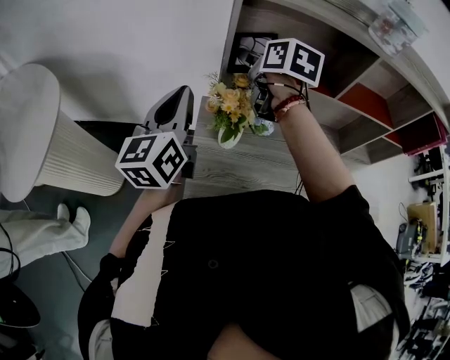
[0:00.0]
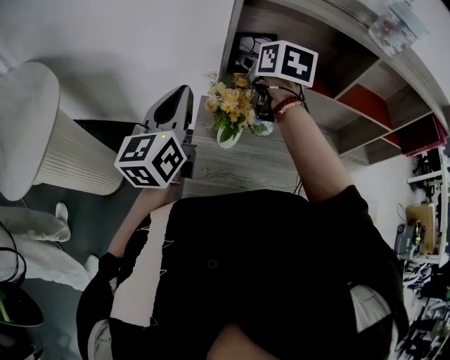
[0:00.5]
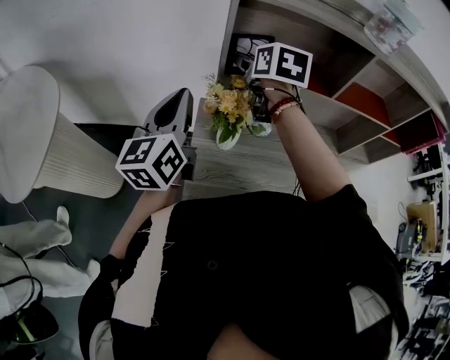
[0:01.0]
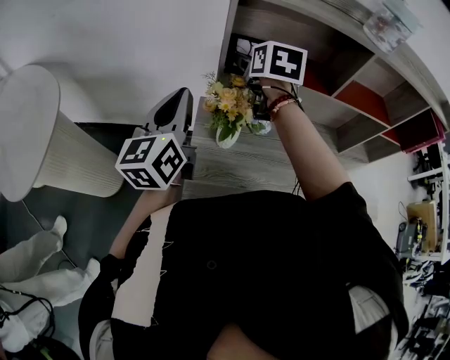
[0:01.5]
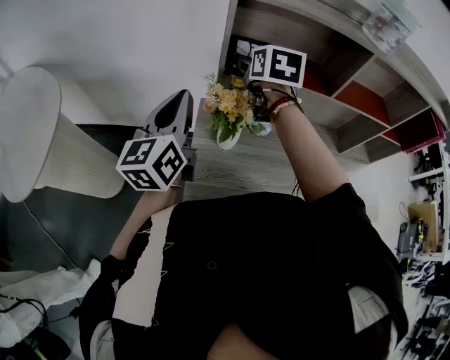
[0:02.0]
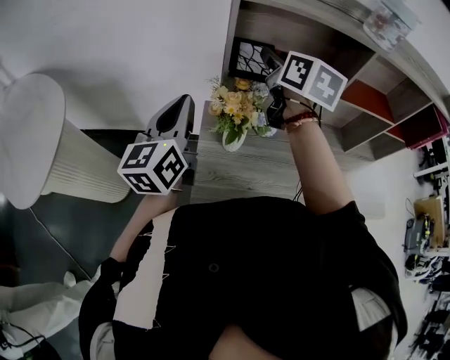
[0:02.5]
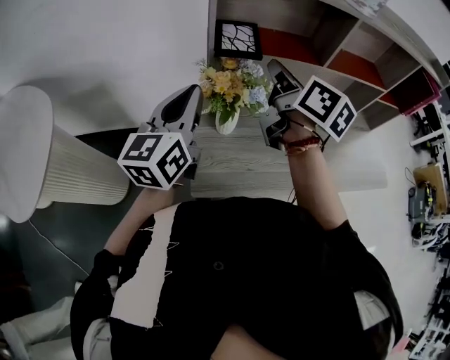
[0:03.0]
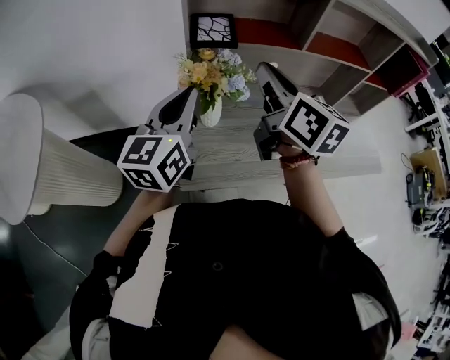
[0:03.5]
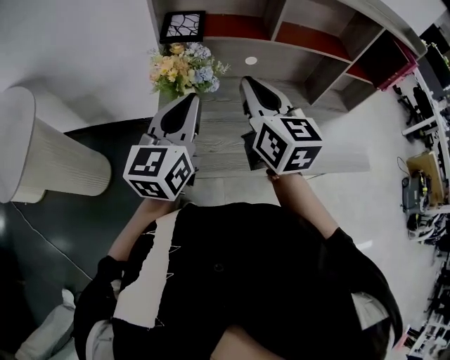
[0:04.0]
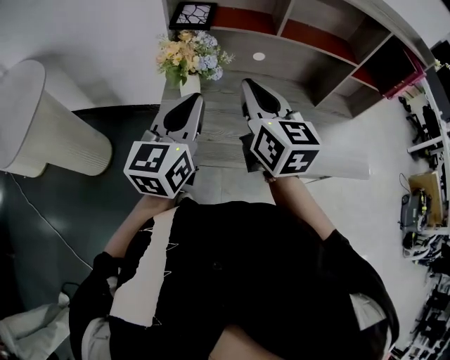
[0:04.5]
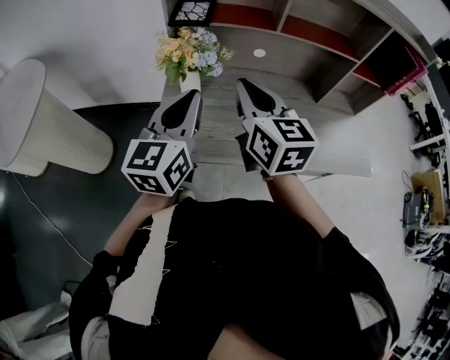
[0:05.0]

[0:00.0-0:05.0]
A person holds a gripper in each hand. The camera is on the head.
0:00.0 to 0:02.5: The right gripper shifts approximately 5 cm upward.
0:02.5 to 0:05.0: The right gripper shifts about 25 cm backward, and closes up, while the left gripper heads to the right and backward, covering roughly 25 cm.

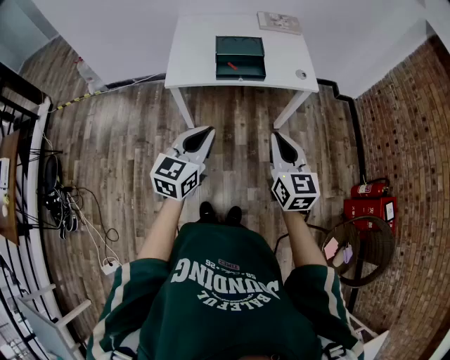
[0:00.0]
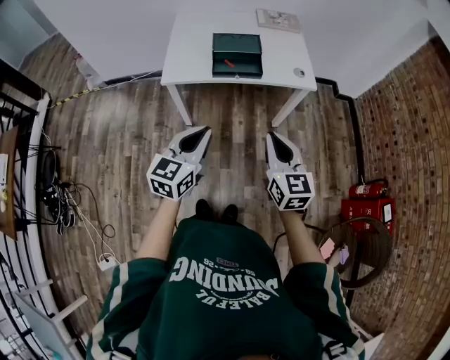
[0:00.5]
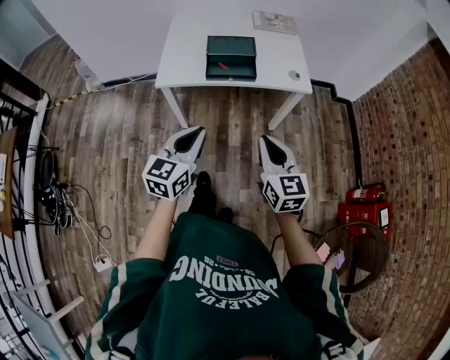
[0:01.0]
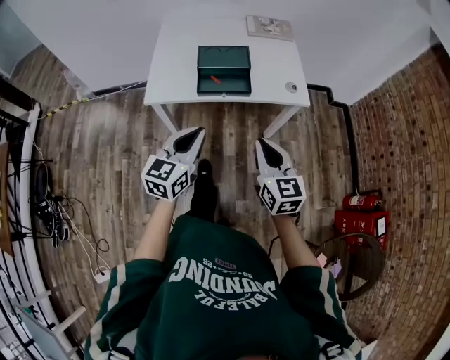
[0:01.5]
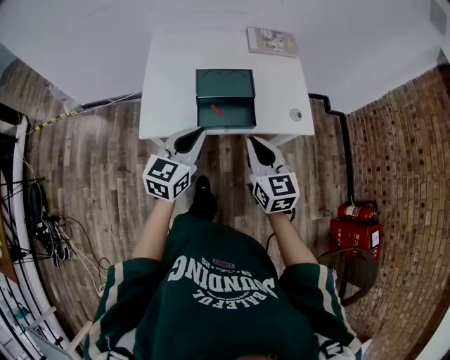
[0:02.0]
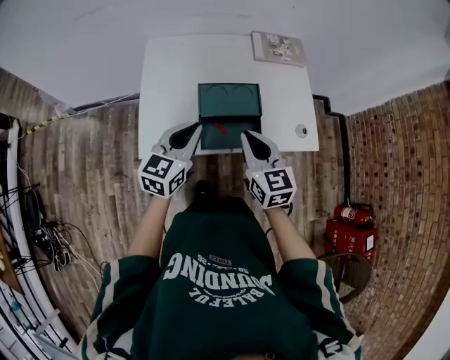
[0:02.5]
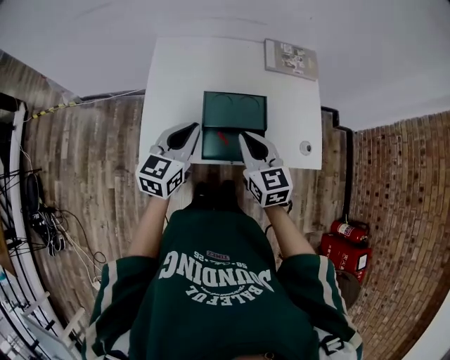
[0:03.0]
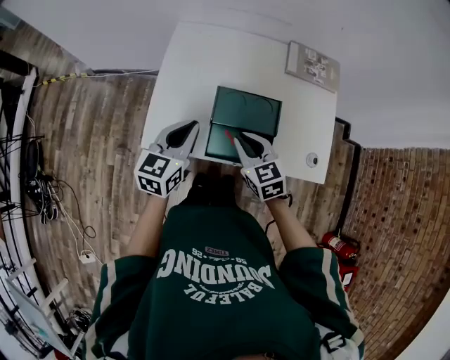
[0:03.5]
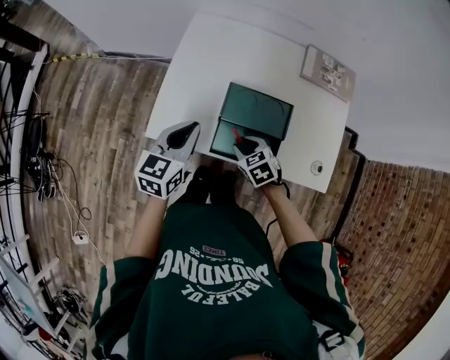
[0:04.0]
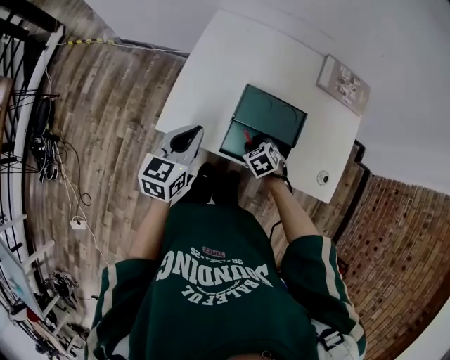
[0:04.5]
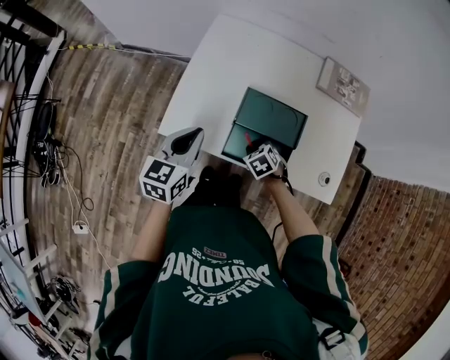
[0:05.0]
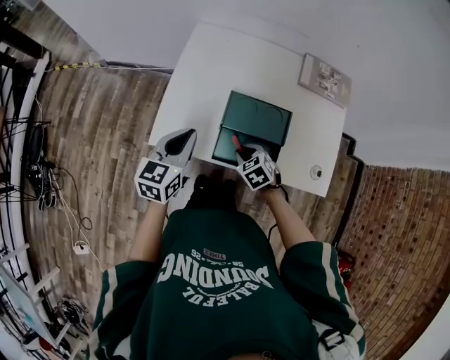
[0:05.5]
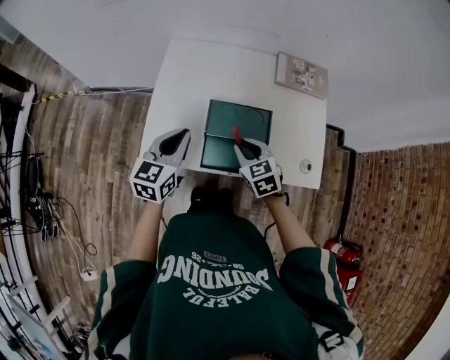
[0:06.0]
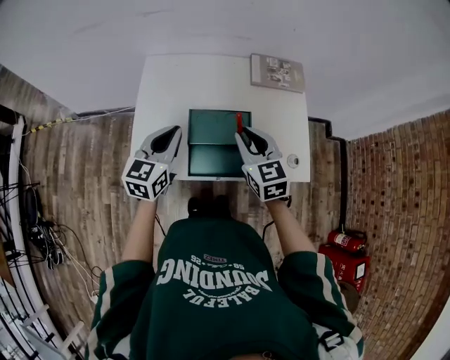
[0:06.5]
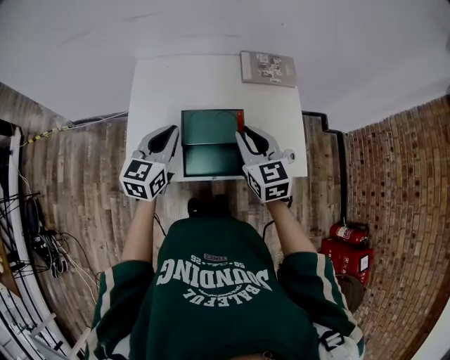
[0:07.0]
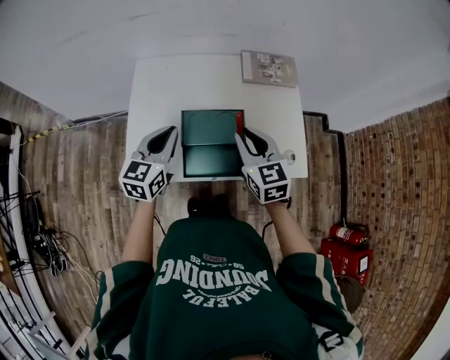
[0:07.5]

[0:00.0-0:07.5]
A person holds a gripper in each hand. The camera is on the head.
0:00.0 to 0:02.0: Both grippers travel together forward, about 25 cm.
0:02.0 to 0:04.0: The right gripper travels downward by approximately 20 cm, points its fingers some 40 degrees further downward, and opens its fingers, while the left gripper moves roughly 15 cm, and turns by roughly 20 degrees.
0:04.0 to 0:05.5: The right gripper goes downward and returns, some 10 cm each way.
0:05.5 to 0:07.5: The right gripper travels upward and to the right by some 25 cm, and points its fingers some 40 degrees further upward, while the left gripper is displaced to the right and forward by approximately 10 cm.

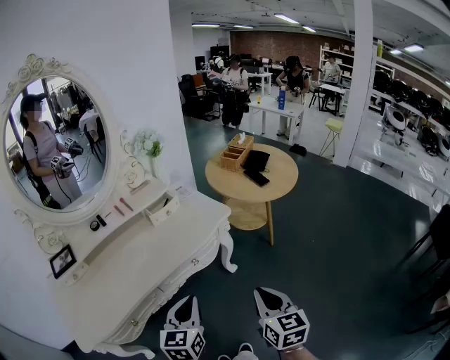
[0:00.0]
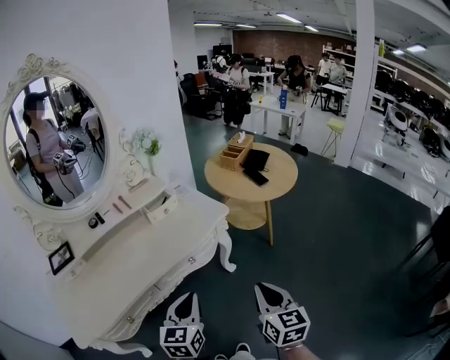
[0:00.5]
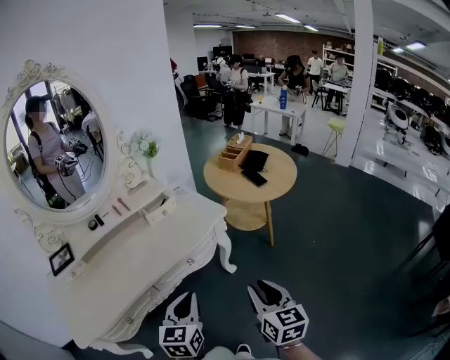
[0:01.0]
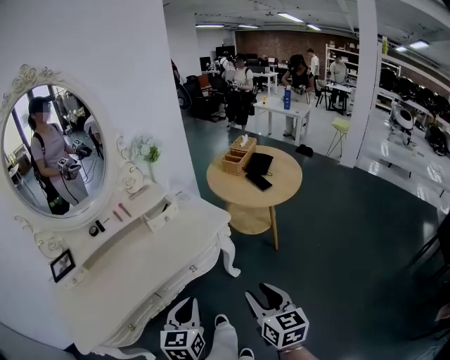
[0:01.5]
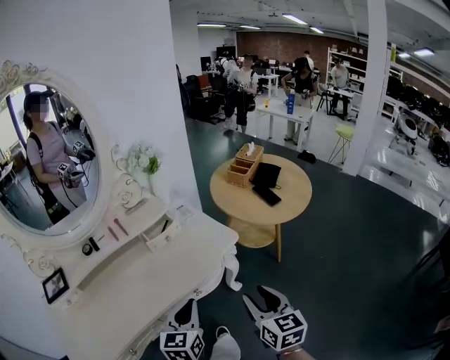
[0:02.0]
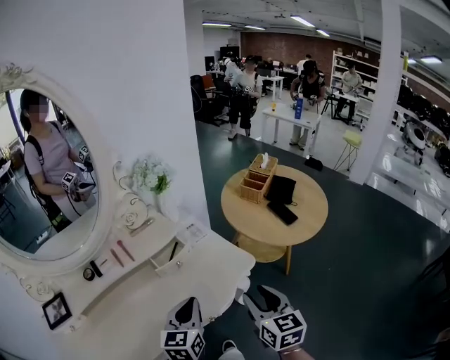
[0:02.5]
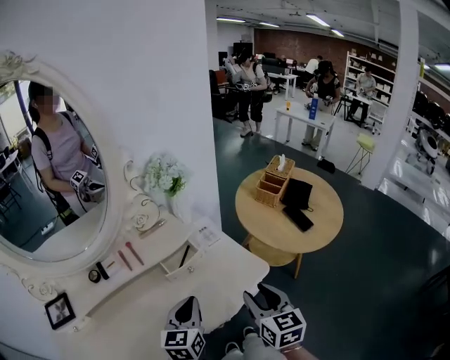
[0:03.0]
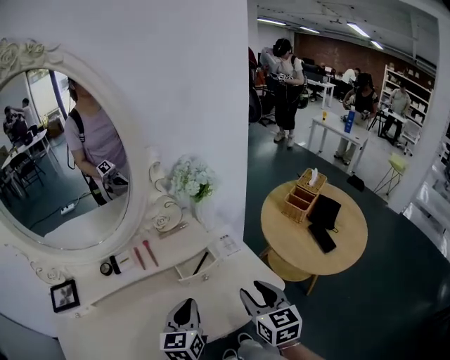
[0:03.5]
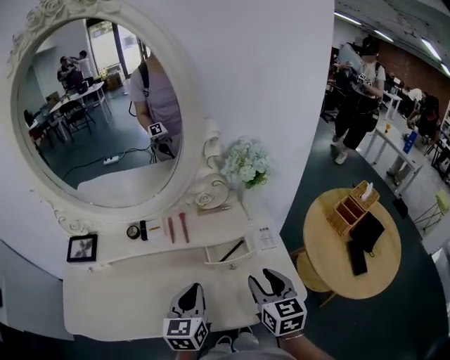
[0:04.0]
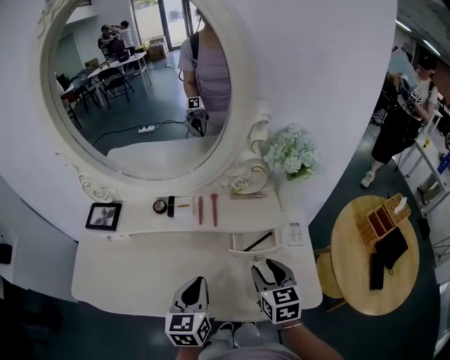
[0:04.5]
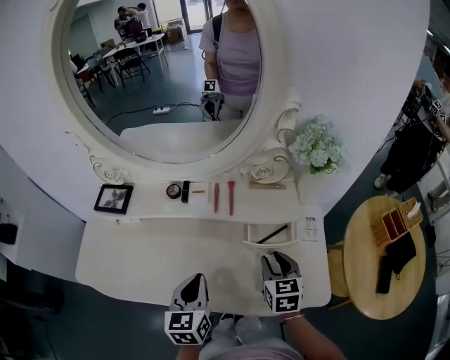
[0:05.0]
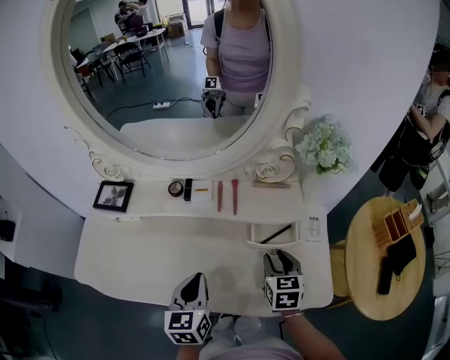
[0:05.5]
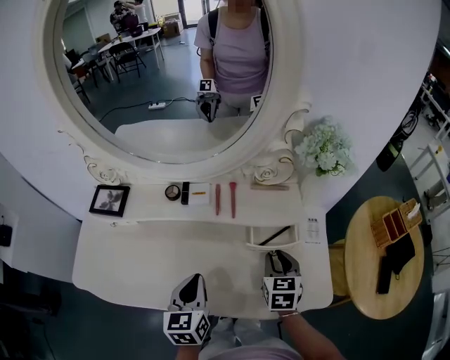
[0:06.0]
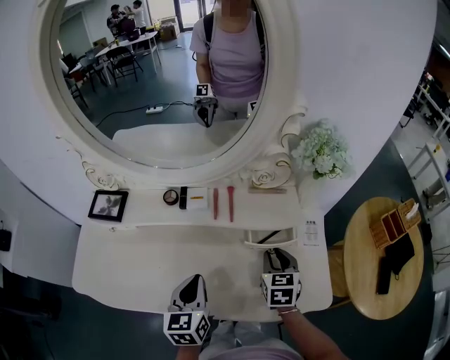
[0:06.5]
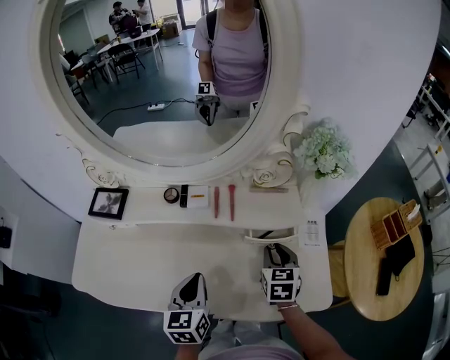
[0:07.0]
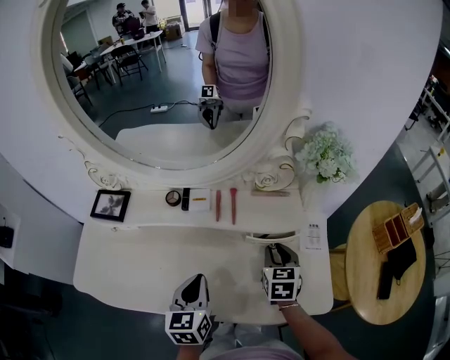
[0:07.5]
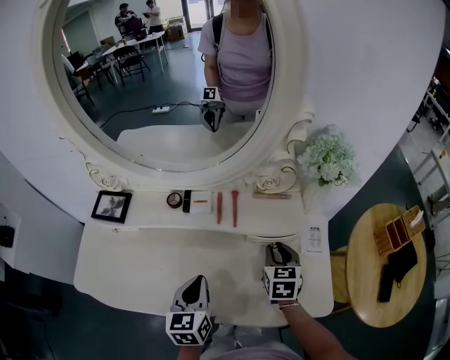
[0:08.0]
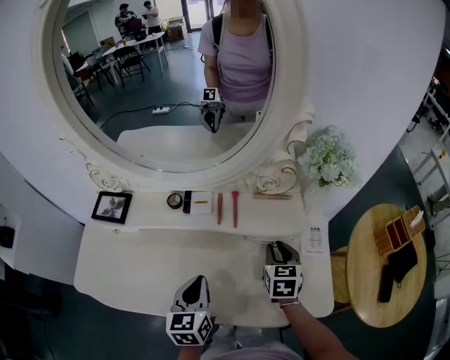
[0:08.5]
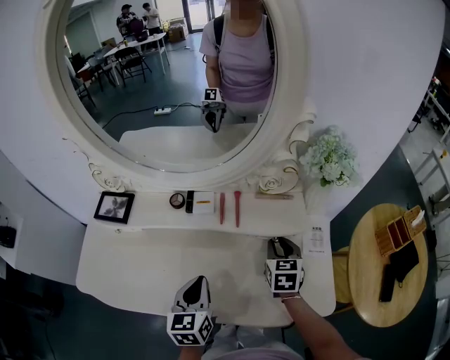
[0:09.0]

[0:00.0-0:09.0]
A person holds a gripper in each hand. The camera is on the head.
0:00.0 to 0:02.0: Both grippers travel together forward, about 15 cm. The right gripper opens its fingers.
0:02.0 to 0:04.5: The left gripper moves about 25 cm, and rotates some 50 degrees. The right gripper ends up approximately 40 cm from where it was, and turns by some 50 degrees.
0:04.5 to 0:07.0: The left gripper moves about 5 cm. The right gripper travels forward and downward by some 10 cm.
0:07.0 to 0:09.0: The grippers make only small movements.

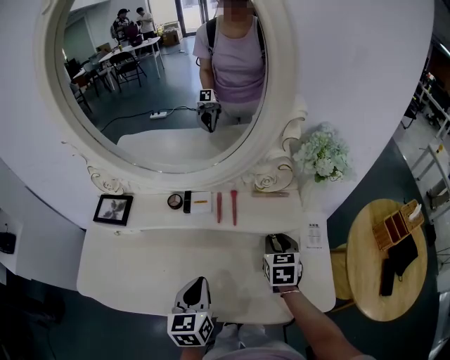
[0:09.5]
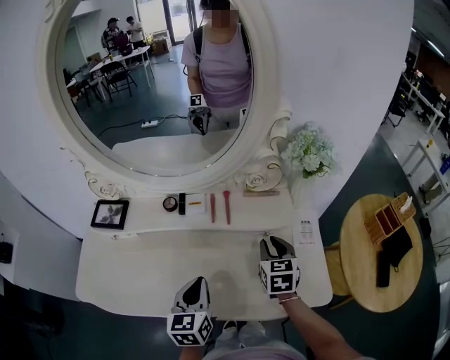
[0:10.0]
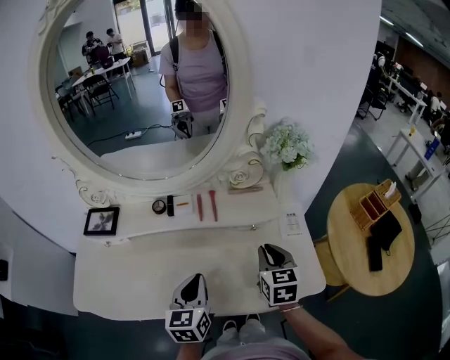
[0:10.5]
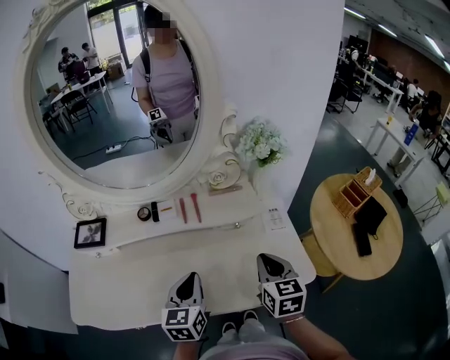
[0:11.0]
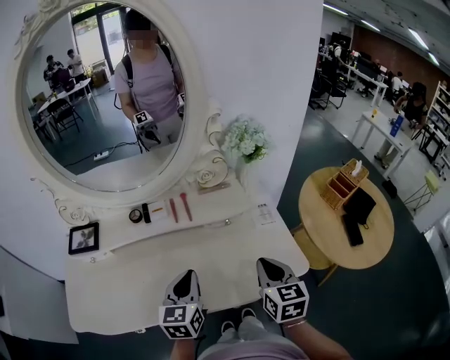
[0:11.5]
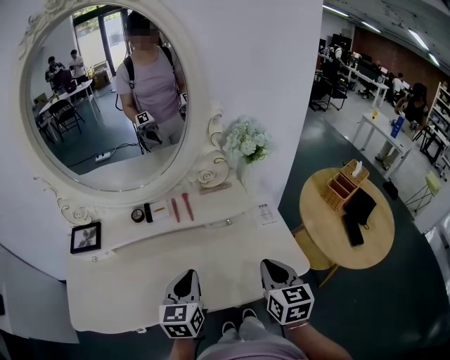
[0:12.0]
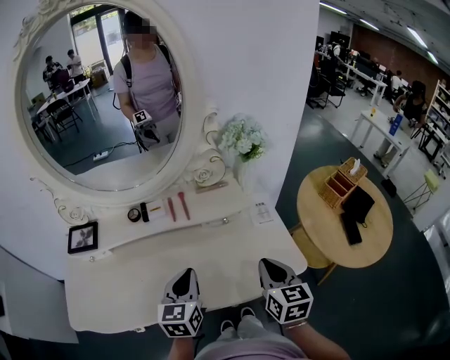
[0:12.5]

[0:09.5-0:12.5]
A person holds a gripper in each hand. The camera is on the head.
0:09.5 to 0:11.0: The left gripper shifts by some 5 cm. The right gripper heads backward and upward, covering approximately 20 cm, and closes.
0:11.0 to 0:12.5: The right gripper shifts by about 5 cm.

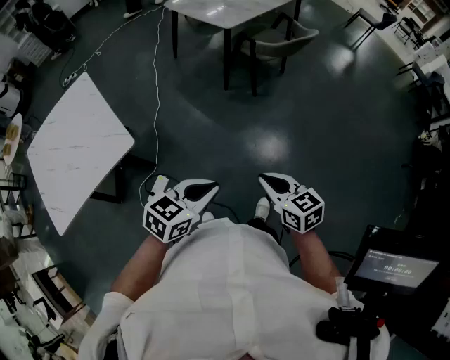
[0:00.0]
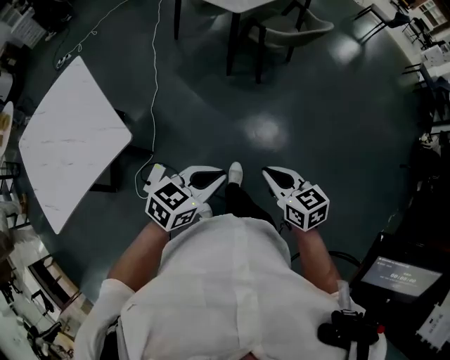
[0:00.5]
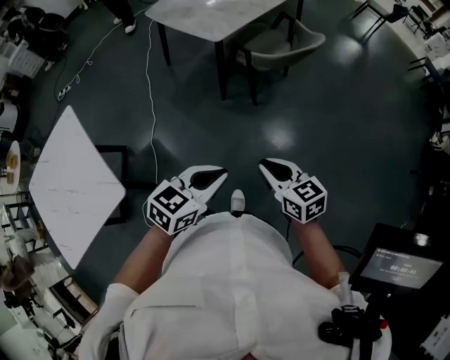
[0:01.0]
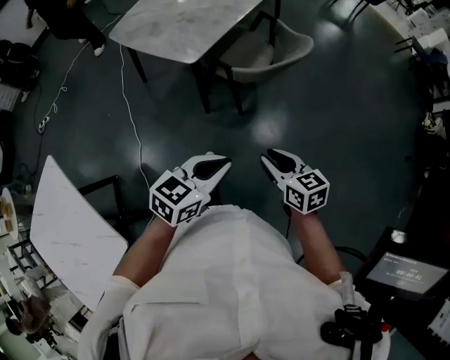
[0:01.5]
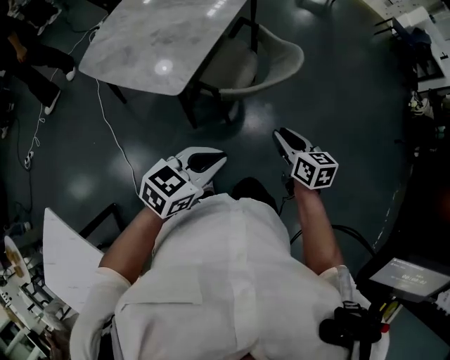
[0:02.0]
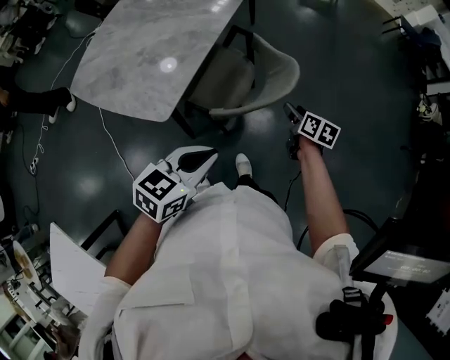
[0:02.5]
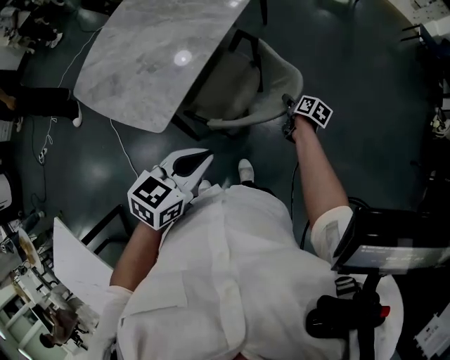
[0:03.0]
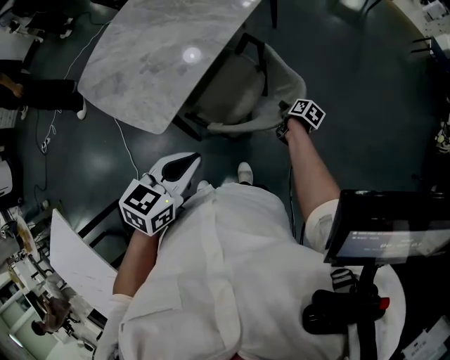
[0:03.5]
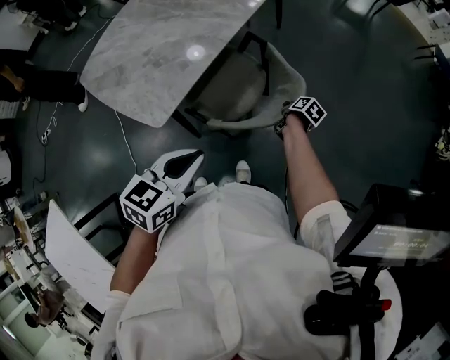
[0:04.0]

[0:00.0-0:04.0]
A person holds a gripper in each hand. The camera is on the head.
0:00.0 to 0:02.0: The pair of grippers is taken some 60 cm. The right gripper swivels about 40 degrees, while the left gripper turns by about 20 degrees.
0:02.0 to 0:04.0: The left gripper heads forward, covering about 20 cm, and swivels approximately 20 degrees. Meanwhile the right gripper travels forward and downward by roughly 40 cm, rolls clockwise, seen from behind, by roughly 40 degrees, and opens, then closes again.
